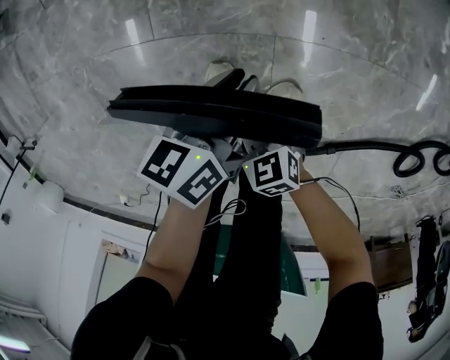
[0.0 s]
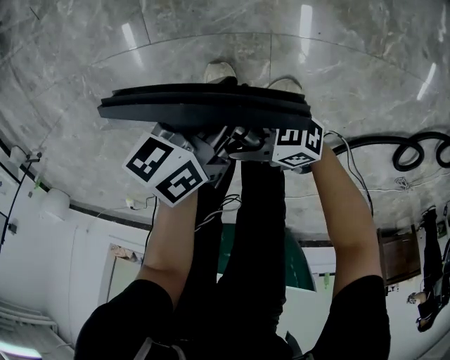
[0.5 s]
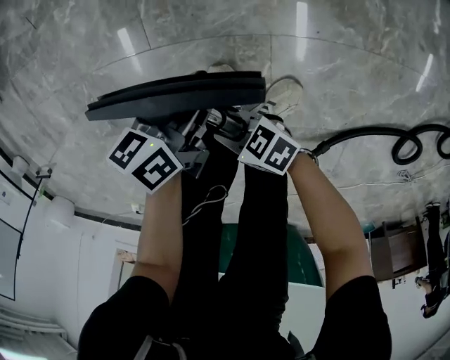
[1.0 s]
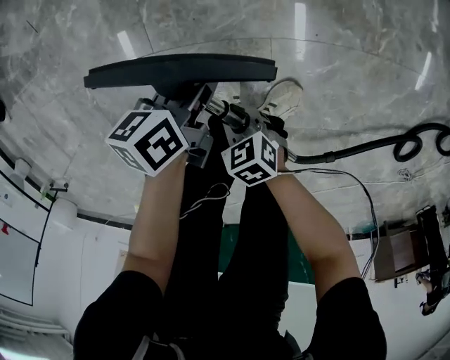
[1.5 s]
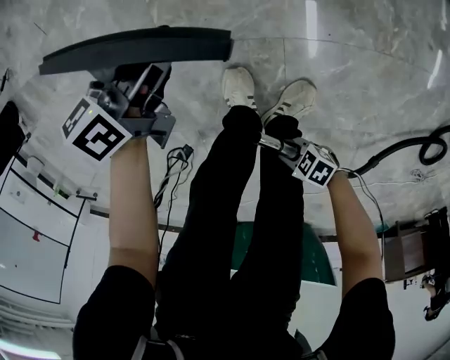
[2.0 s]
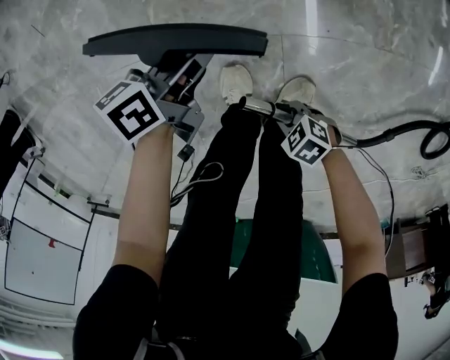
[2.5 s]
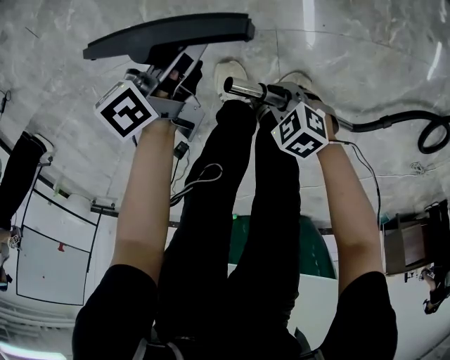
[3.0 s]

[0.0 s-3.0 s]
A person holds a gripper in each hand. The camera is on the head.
0.0 to 1.5 s: The left gripper shifts by about 10 cm. The right gripper goes upward and returns, roughly 5 cm each way.

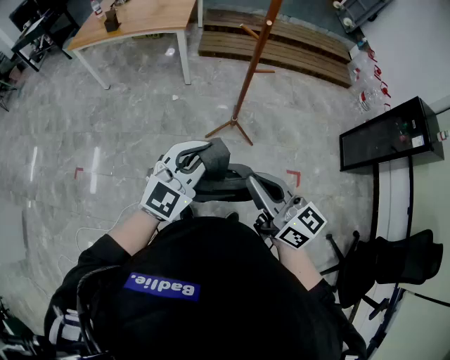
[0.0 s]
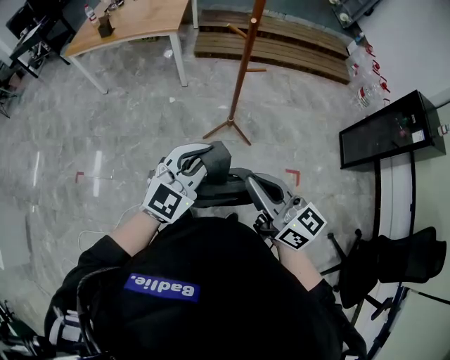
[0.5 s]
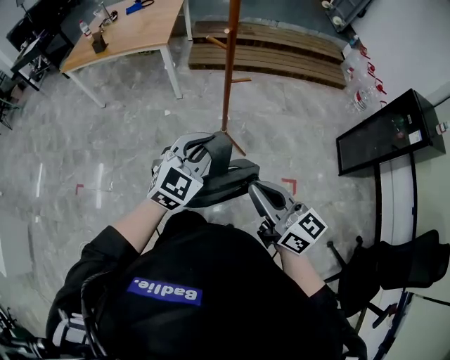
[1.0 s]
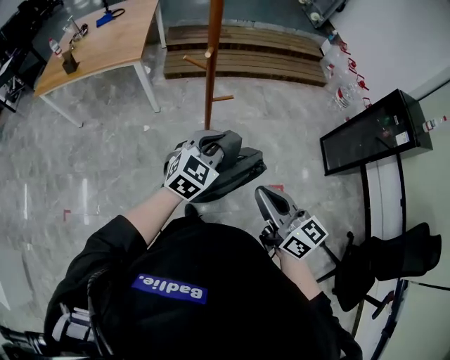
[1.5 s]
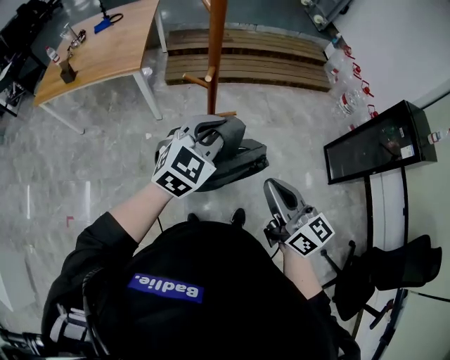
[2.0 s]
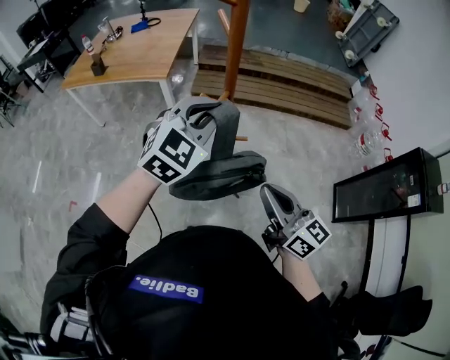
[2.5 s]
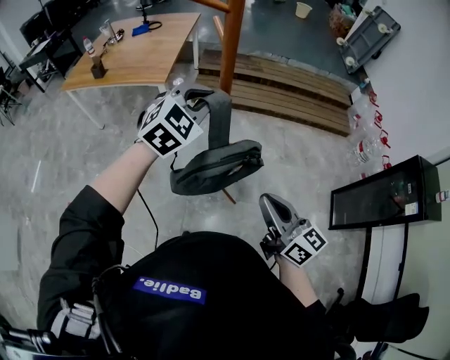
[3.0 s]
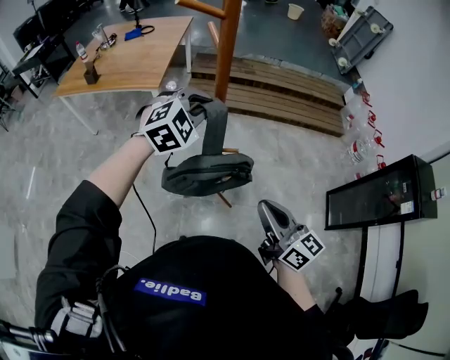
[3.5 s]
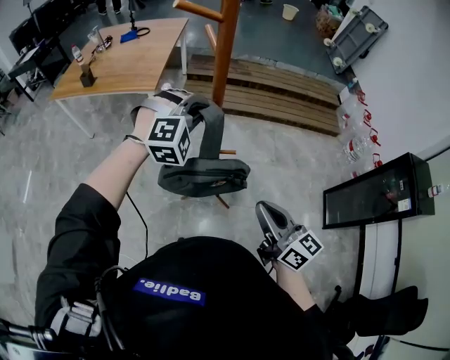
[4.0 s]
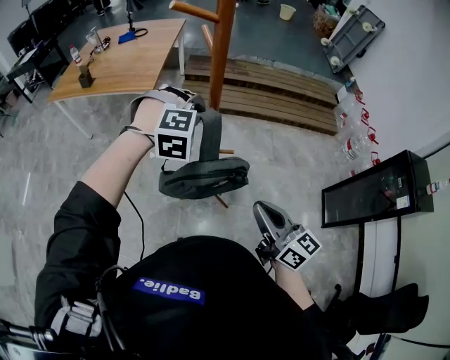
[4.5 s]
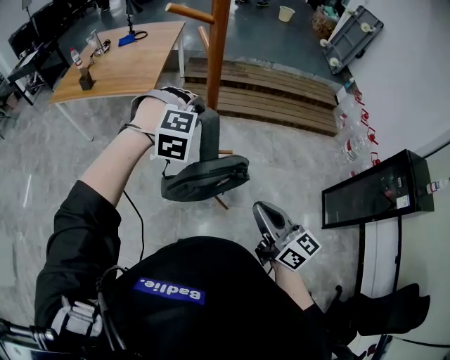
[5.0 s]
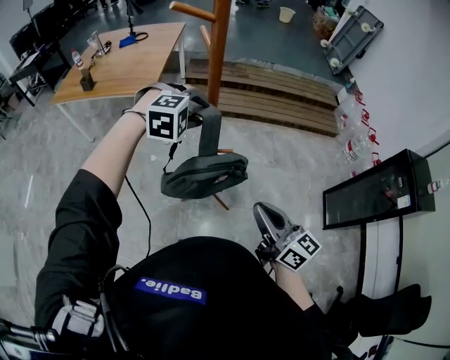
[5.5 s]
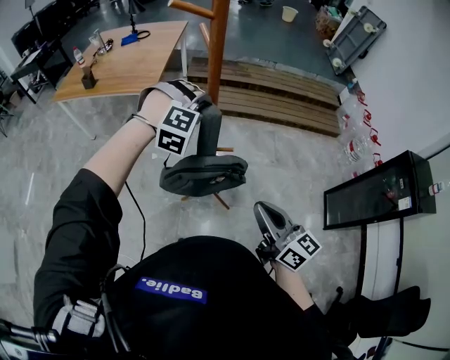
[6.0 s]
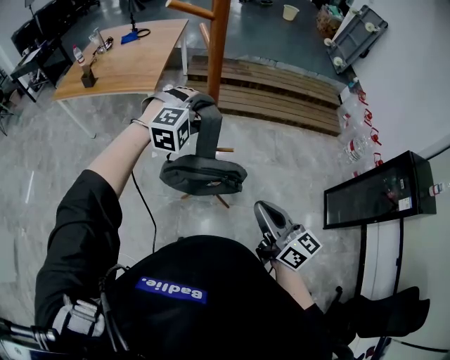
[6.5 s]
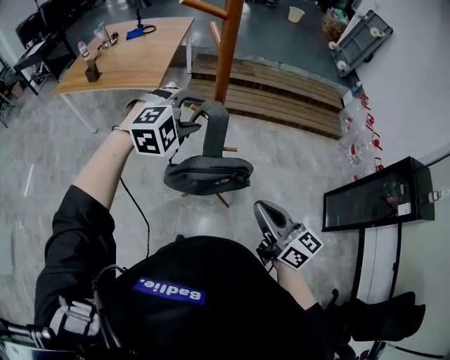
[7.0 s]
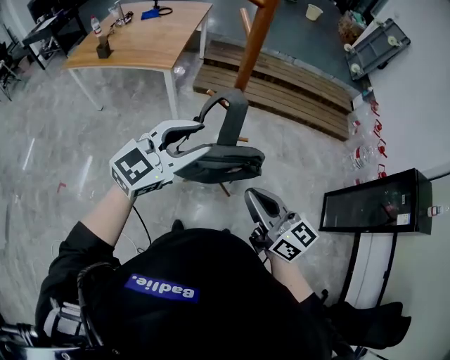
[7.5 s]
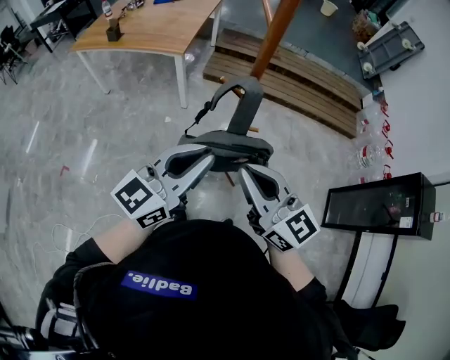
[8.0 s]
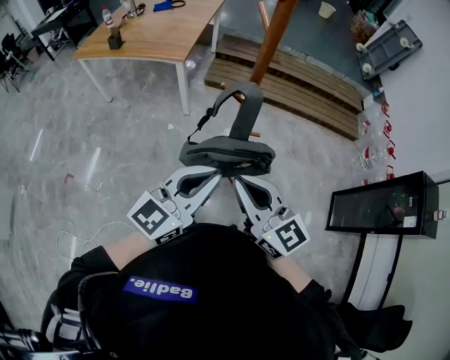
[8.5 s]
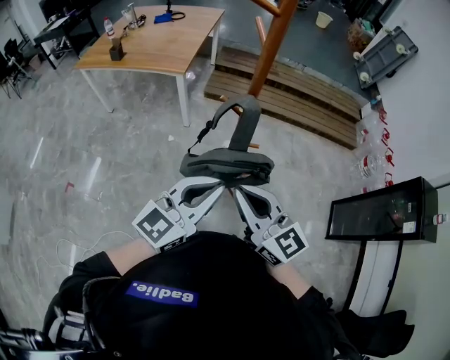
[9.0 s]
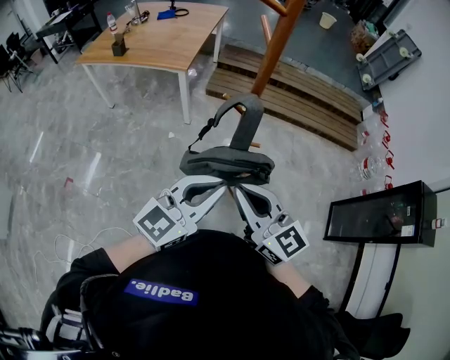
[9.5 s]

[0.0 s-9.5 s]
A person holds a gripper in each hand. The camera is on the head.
0.0 to 2.0 s: The grippers both shift forward and to the right by some 30 cm.
2.0 to 4.0 s: The left gripper shifts approximately 15 cm forward, and rolls clockwise, seen from behind, by approximately 40 degrees. The right gripper heads forward, covering some 5 cm.
4.0 to 5.5 s: The left gripper changes its angle by about 20 degrees, and opens.
5.5 to 7.5 s: The left gripper goes about 15 cm backward and to the left, and tips its fingers upward by roughly 50 degrees. Meanwhile the right gripper goes roughly 10 cm to the left.
7.5 to 9.5 s: The left gripper goes about 10 cm backward, and closes up. Meanwhile the right gripper goes about 5 cm to the left.

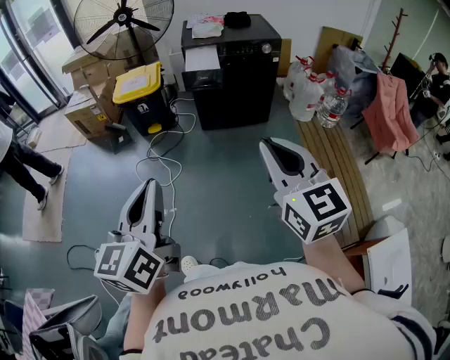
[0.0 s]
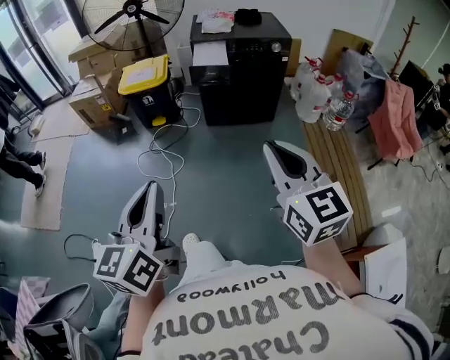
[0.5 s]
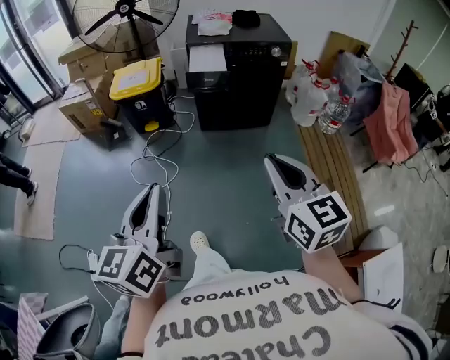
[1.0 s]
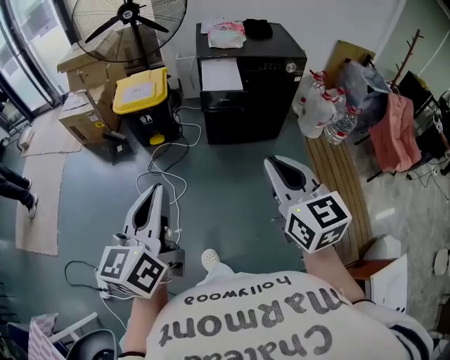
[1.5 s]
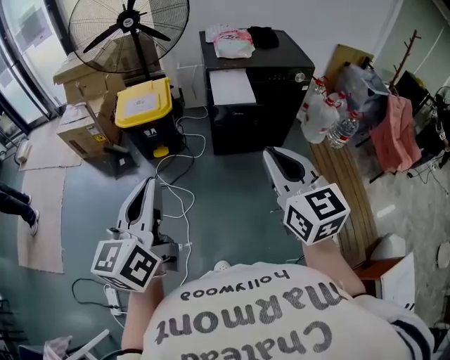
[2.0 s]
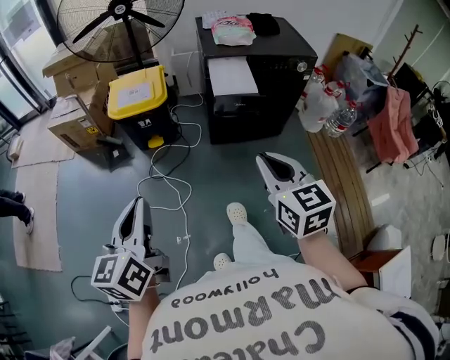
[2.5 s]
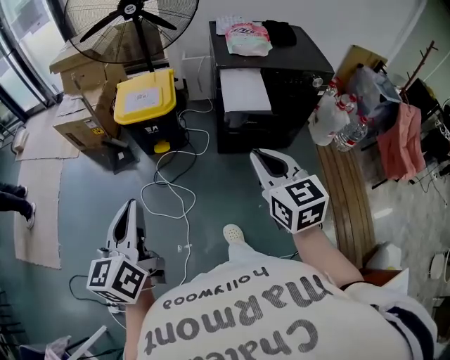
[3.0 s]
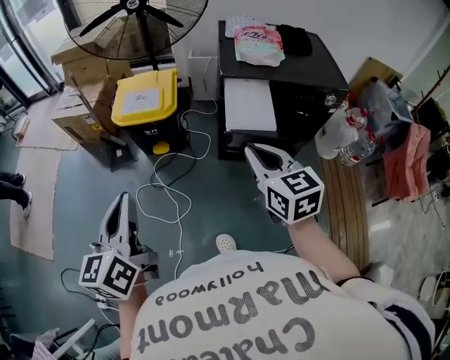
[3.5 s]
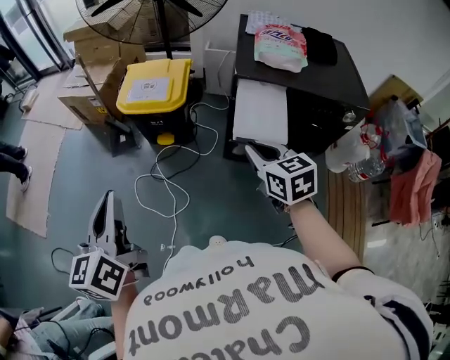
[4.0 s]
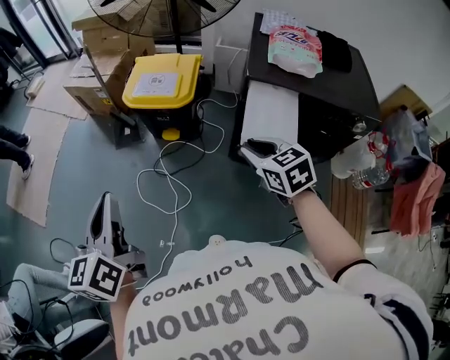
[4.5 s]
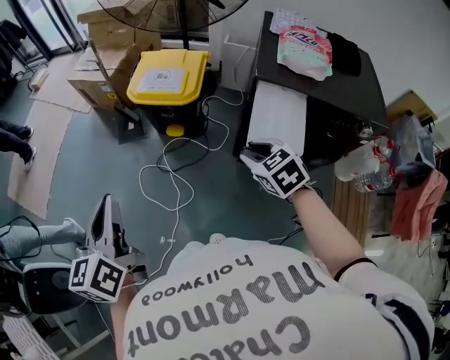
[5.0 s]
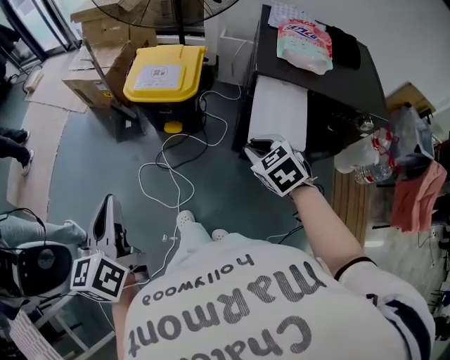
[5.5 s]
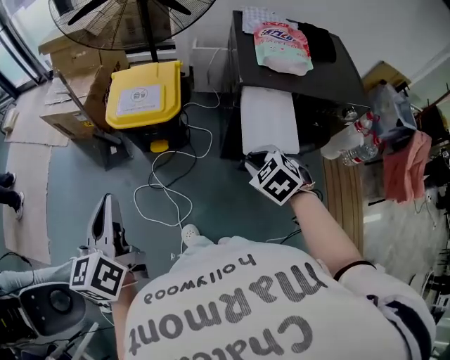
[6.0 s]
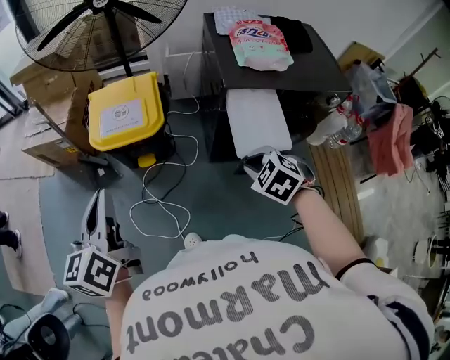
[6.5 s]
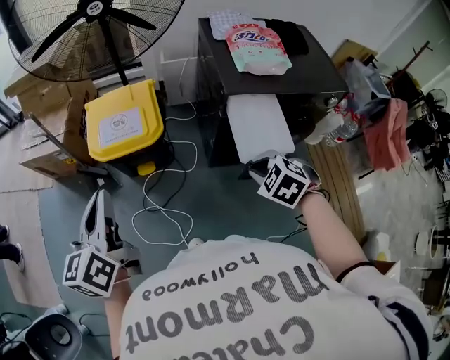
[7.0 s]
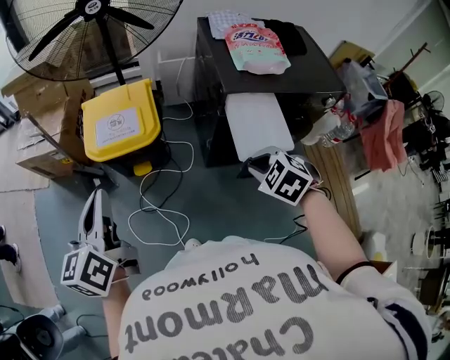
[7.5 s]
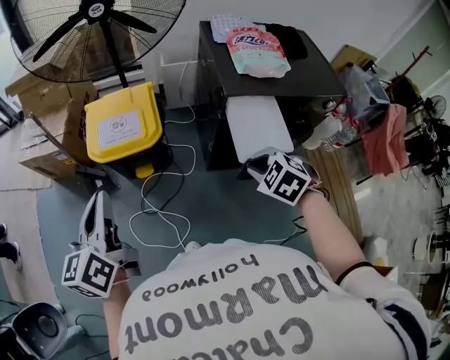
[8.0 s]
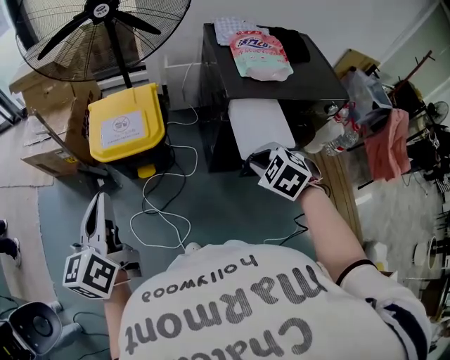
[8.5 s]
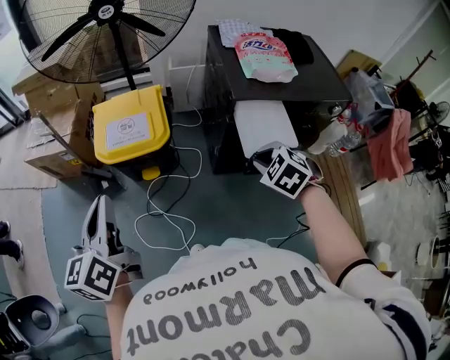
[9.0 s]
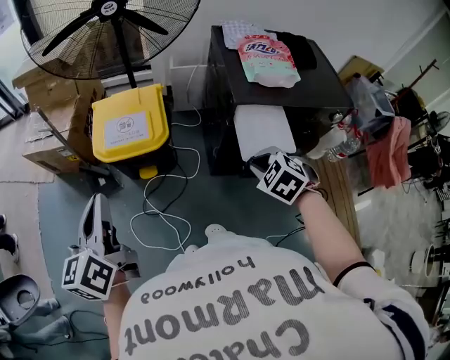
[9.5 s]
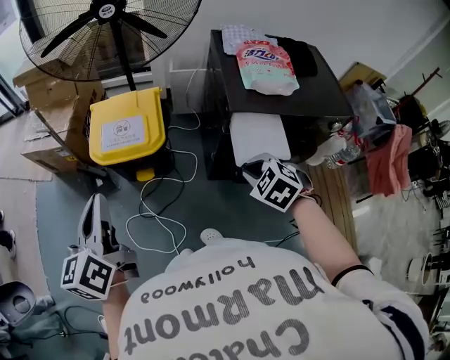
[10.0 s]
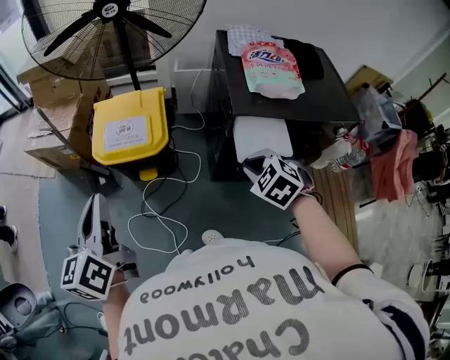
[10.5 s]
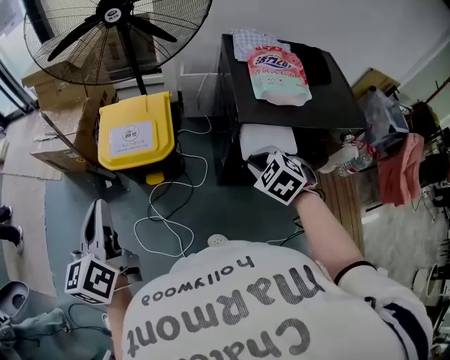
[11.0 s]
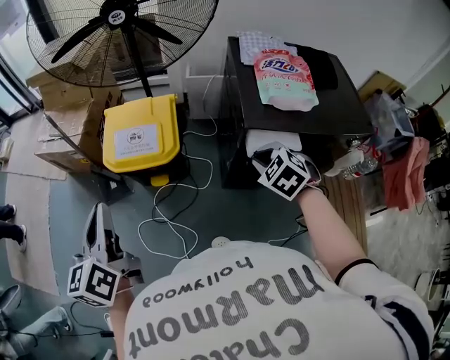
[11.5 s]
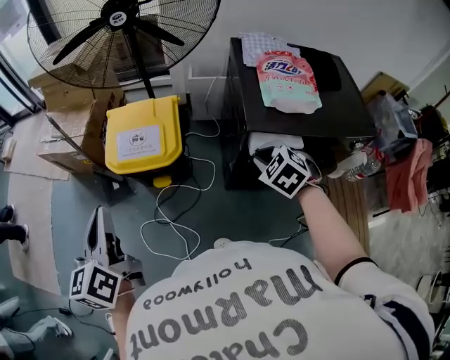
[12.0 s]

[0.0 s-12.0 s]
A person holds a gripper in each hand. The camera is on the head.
0.0 to 2.0 s: The grippers both shift forward and to the left by roughly 30 cm.
2.0 to 4.0 s: The right gripper moves forward and downward, approximately 35 cm, and turns by about 30 degrees. The left gripper travels forward and downward by approximately 20 cm, and rotates about 30 degrees.
4.0 to 6.0 s: The left gripper is displaced forward by roughly 10 cm; the right gripper is displaced downward by about 10 cm, and changes its angle by about 40 degrees.
6.0 to 8.0 s: The left gripper shifts roughly 10 cm forward.
8.0 to 10.0 s: The grippers make only small movements.
10.0 to 12.0 s: The right gripper shifts approximately 10 cm forward.

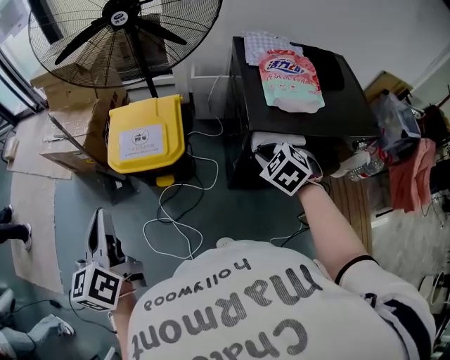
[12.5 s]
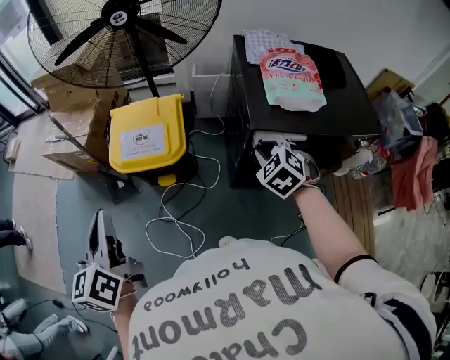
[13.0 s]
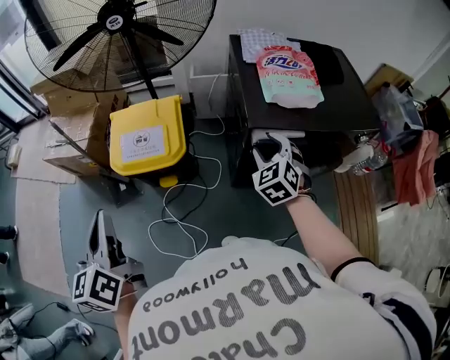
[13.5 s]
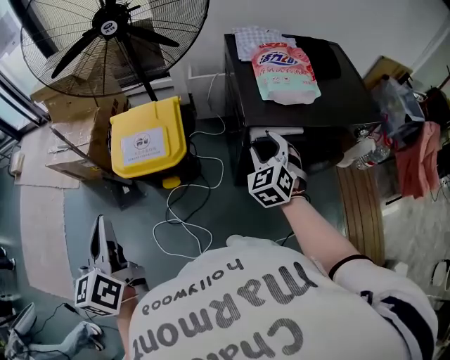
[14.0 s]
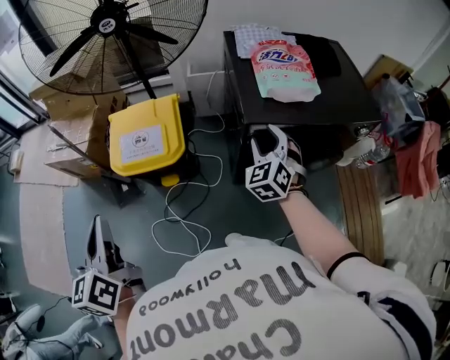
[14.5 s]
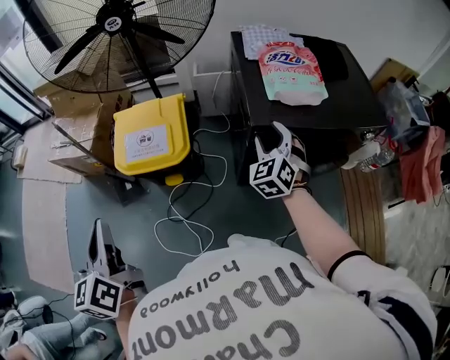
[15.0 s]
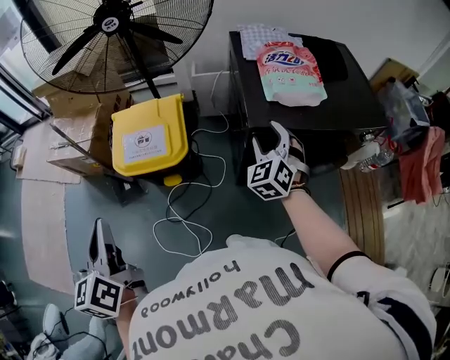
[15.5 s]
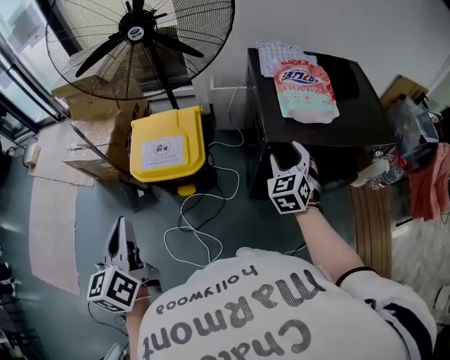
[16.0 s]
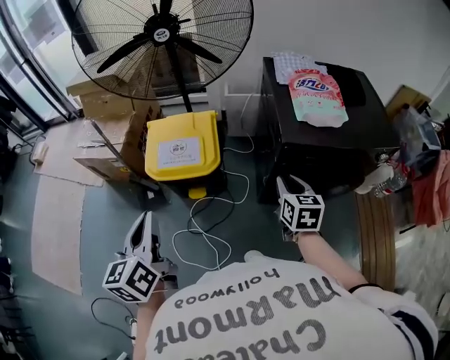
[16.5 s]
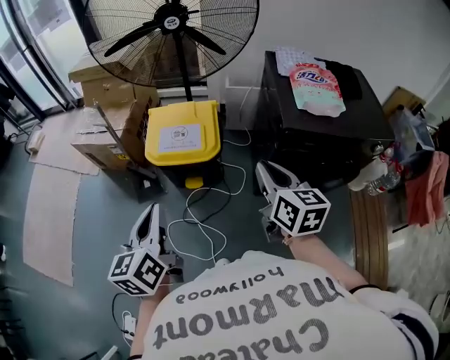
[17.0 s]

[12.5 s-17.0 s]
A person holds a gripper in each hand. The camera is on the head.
12.5 to 14.5 s: The right gripper turns by some 40 degrees, and opens.
14.5 to 17.0 s: The left gripper heads backward, covering roughly 5 cm. The right gripper heads to the left, backward and upward, covering some 25 cm, twists roughly 60 degrees clockwise, seen from behind, and closes.
